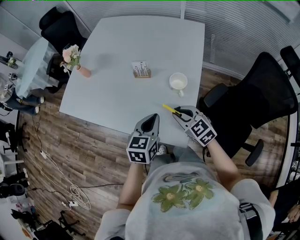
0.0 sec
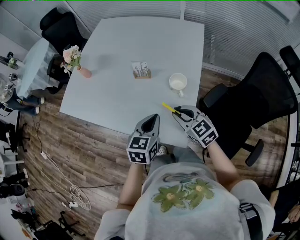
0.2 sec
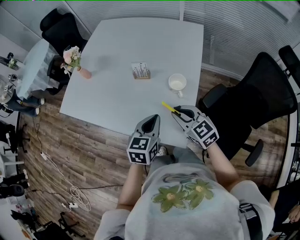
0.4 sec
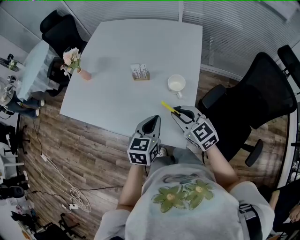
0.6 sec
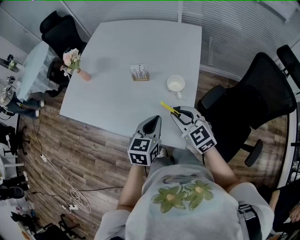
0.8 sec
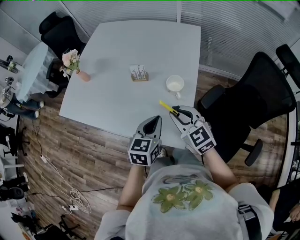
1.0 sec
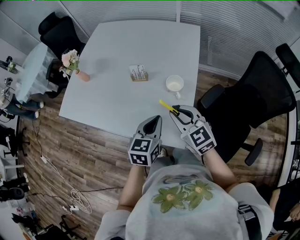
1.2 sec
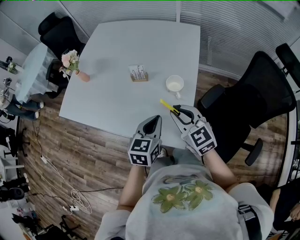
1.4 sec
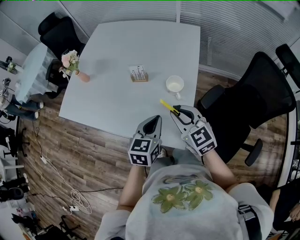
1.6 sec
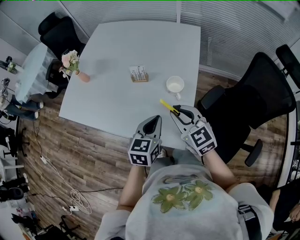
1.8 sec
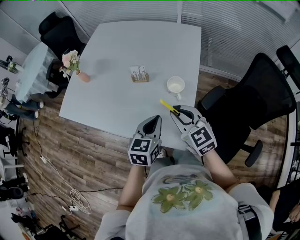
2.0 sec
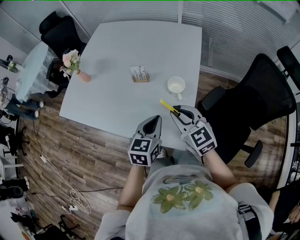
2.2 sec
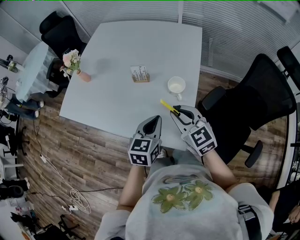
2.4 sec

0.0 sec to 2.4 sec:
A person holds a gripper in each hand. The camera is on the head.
0.0 sec to 1.2 sec: The right gripper moves upward, approximately 10 cm.
1.2 sec to 2.4 sec: Both grippers stay about where they are.

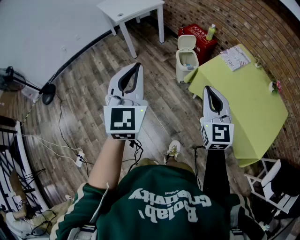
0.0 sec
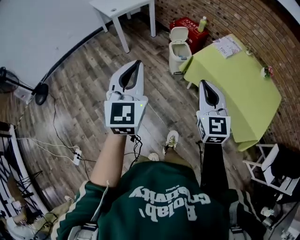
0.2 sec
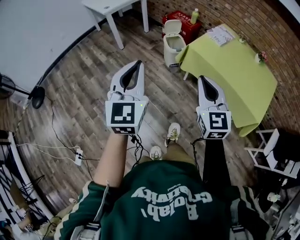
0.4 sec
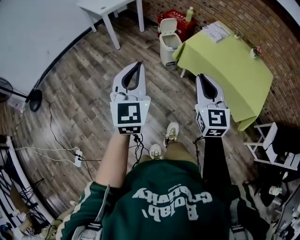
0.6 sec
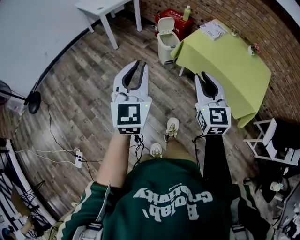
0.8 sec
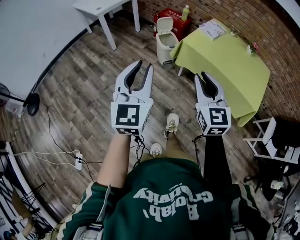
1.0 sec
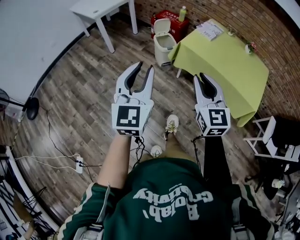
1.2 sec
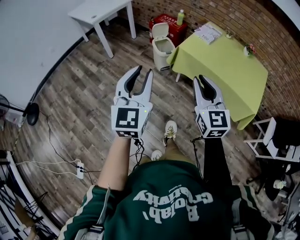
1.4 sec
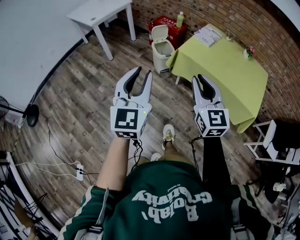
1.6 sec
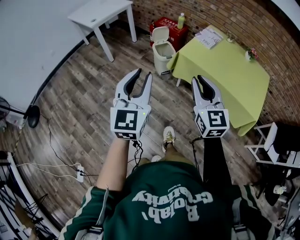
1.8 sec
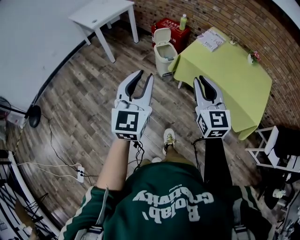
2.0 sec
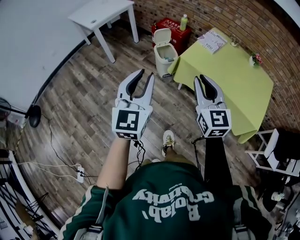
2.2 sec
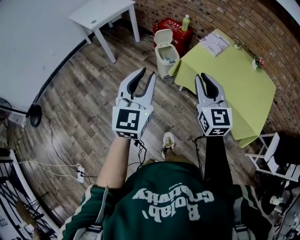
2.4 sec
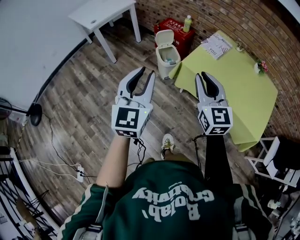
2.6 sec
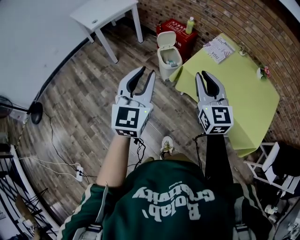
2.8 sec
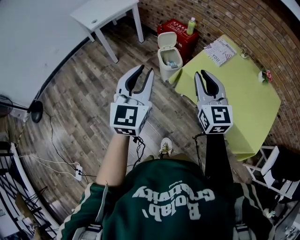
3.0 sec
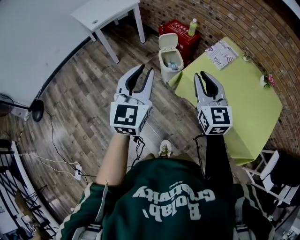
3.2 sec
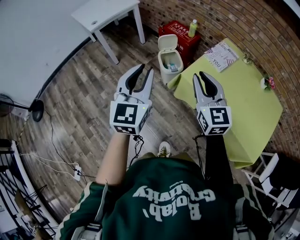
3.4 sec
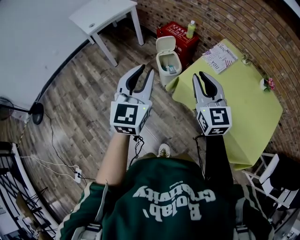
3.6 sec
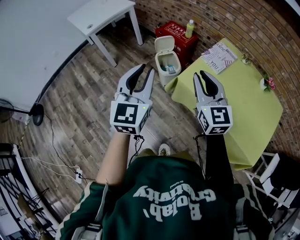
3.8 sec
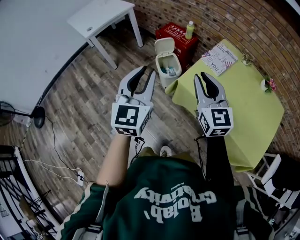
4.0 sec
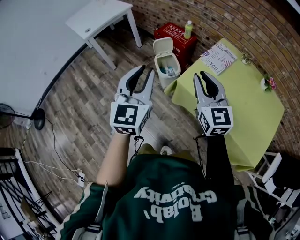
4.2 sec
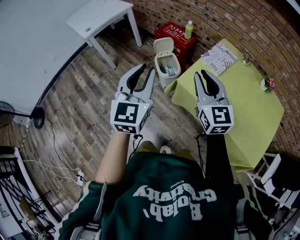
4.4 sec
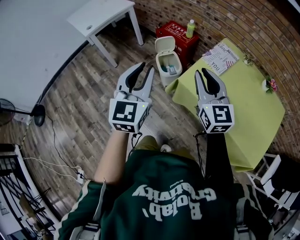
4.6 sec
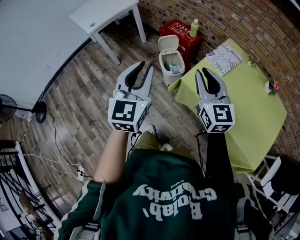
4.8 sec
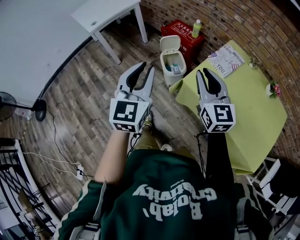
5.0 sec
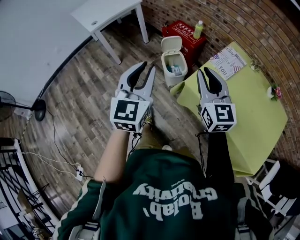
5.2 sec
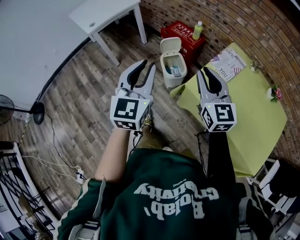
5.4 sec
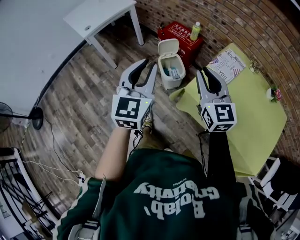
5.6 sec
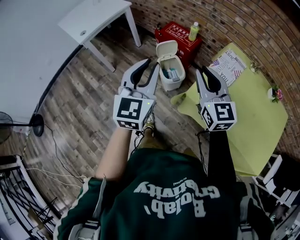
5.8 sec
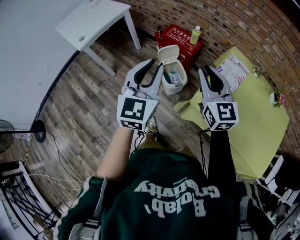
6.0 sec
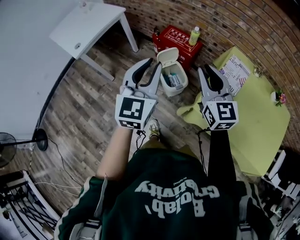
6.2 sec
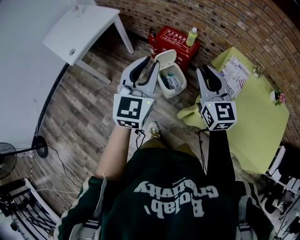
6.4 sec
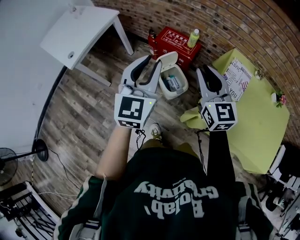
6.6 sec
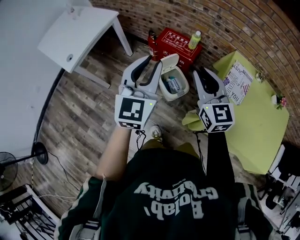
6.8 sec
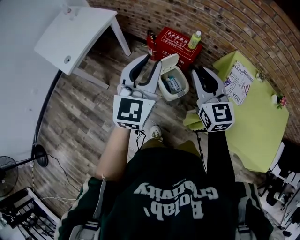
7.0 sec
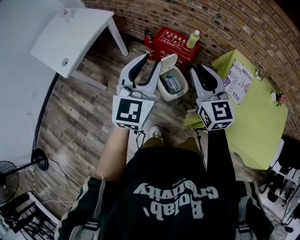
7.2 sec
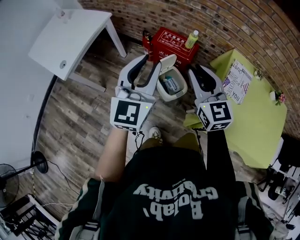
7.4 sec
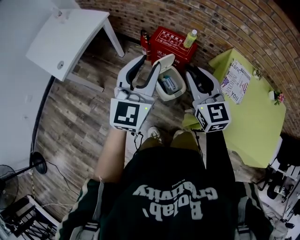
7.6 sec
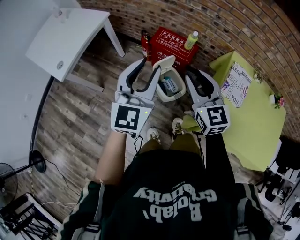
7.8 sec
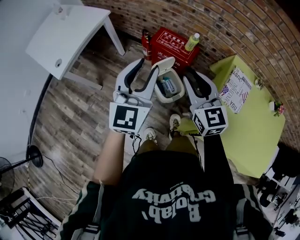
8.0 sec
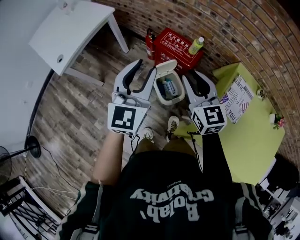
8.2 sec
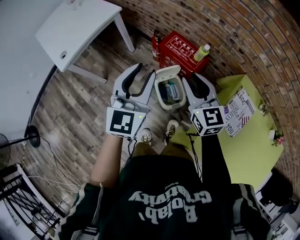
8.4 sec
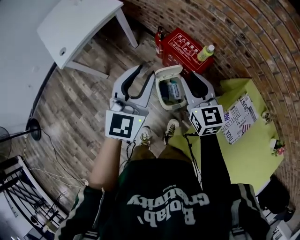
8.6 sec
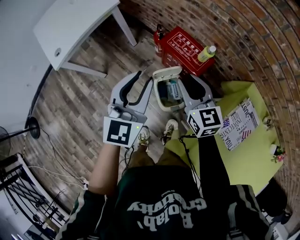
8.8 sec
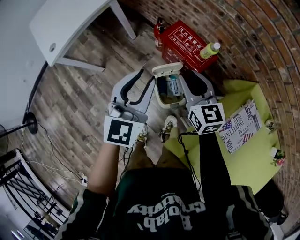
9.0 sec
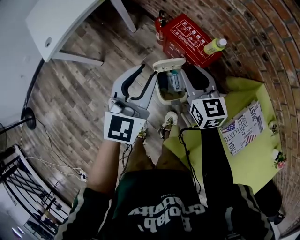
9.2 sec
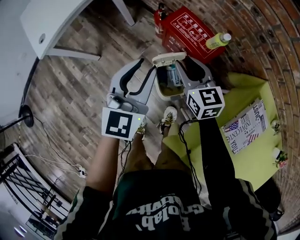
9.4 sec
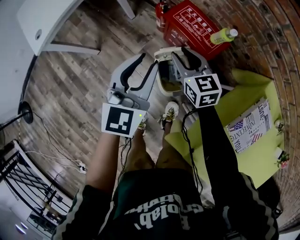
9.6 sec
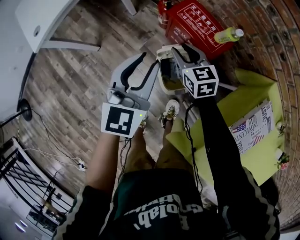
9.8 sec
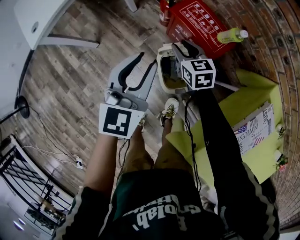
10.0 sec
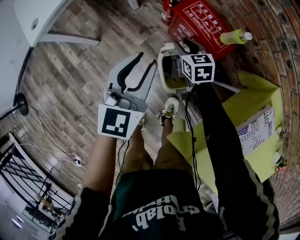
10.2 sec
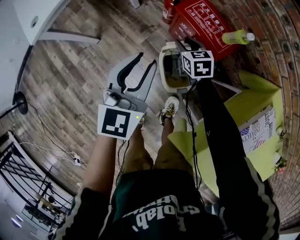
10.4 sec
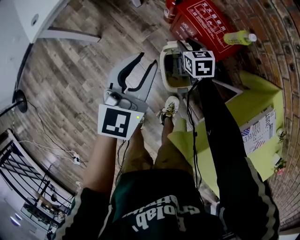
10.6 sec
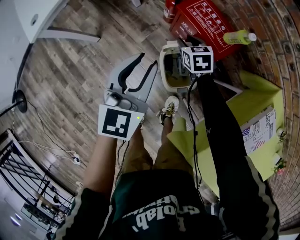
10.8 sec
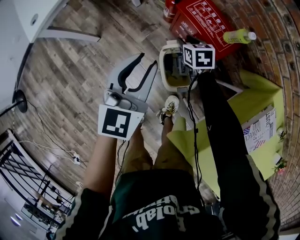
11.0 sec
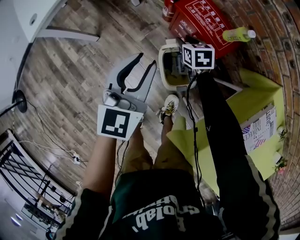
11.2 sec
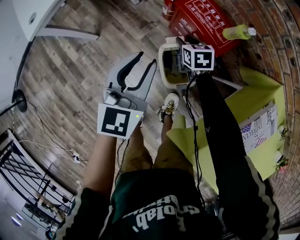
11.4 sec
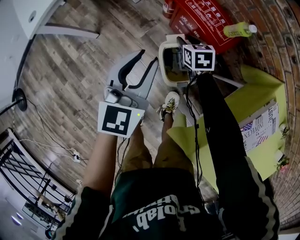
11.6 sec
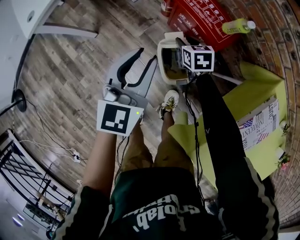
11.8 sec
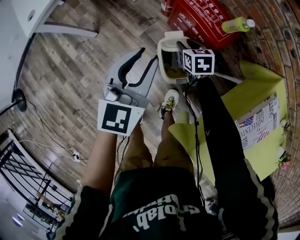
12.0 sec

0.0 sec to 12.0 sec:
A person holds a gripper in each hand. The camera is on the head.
0.0 sec to 1.6 sec: The grippers both shift backward by about 10 cm. The left gripper opens its fingers.
1.6 sec to 3.0 sec: The grippers both shift forward by roughly 25 cm.
3.0 sec to 4.4 sec: Both grippers move forward and to the right, roughly 10 cm.
4.4 sec to 6.0 sec: Both grippers travel together forward, approximately 20 cm.
6.0 sec to 7.6 sec: The two grippers go roughly 20 cm forward and to the left.
7.6 sec to 9.0 sec: The left gripper shifts approximately 20 cm downward, forward and to the right. The right gripper travels forward and downward by roughly 25 cm, and turns by some 20 degrees.
9.0 sec to 10.4 sec: The right gripper heads downward, covering approximately 25 cm, and turns by some 30 degrees, while the left gripper goes some 15 cm downward and to the left.
10.4 sec to 12.0 sec: The right gripper goes approximately 5 cm backward.

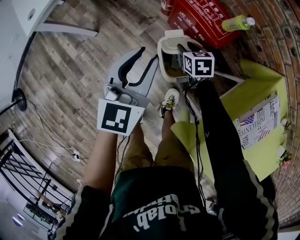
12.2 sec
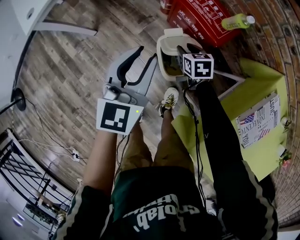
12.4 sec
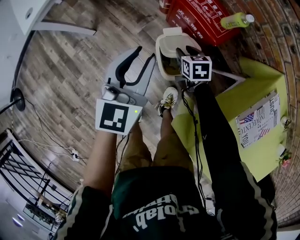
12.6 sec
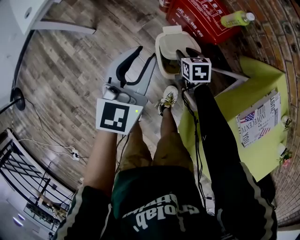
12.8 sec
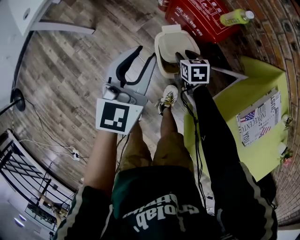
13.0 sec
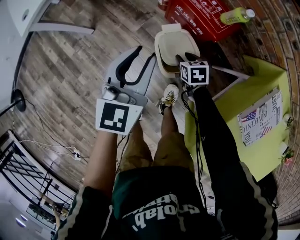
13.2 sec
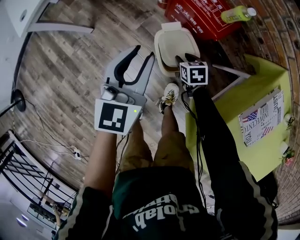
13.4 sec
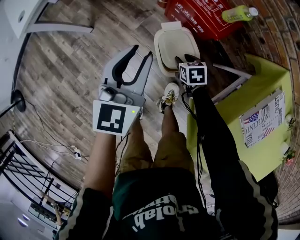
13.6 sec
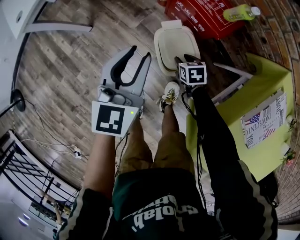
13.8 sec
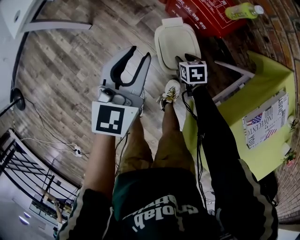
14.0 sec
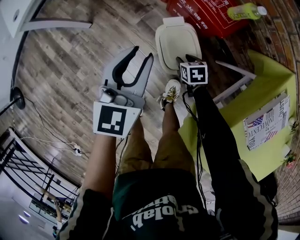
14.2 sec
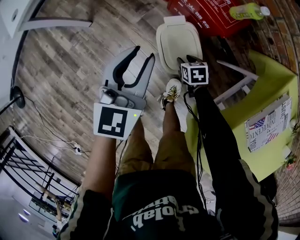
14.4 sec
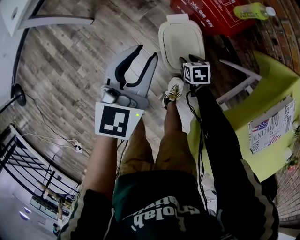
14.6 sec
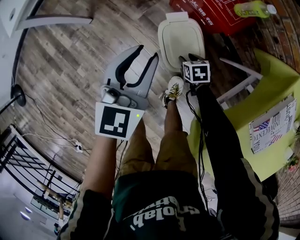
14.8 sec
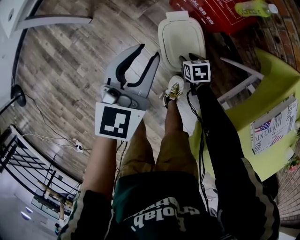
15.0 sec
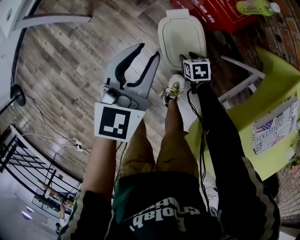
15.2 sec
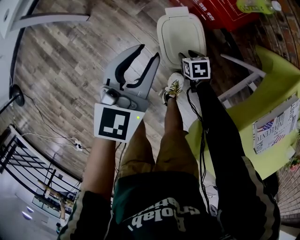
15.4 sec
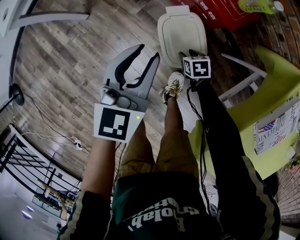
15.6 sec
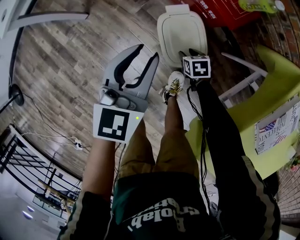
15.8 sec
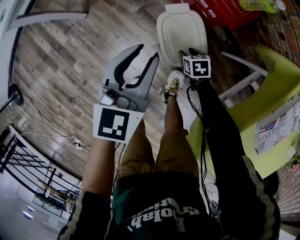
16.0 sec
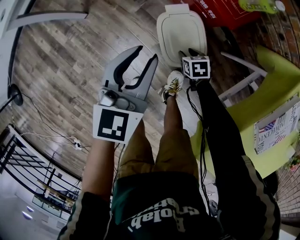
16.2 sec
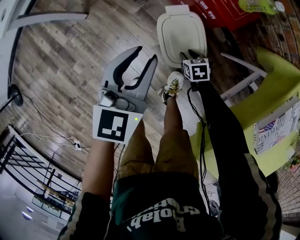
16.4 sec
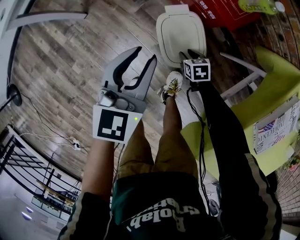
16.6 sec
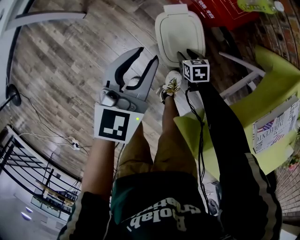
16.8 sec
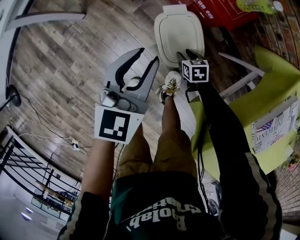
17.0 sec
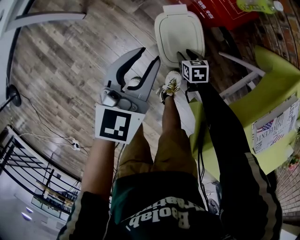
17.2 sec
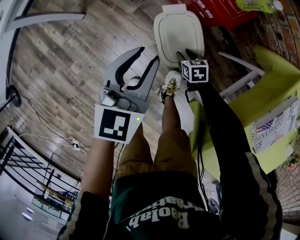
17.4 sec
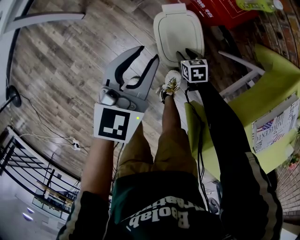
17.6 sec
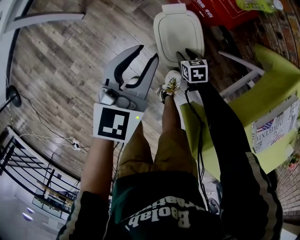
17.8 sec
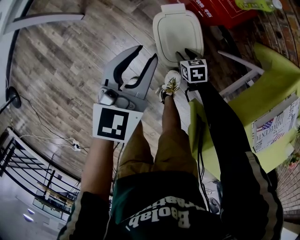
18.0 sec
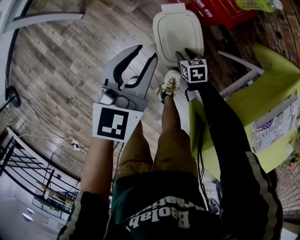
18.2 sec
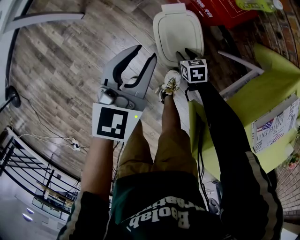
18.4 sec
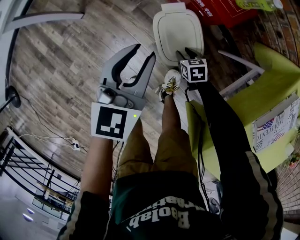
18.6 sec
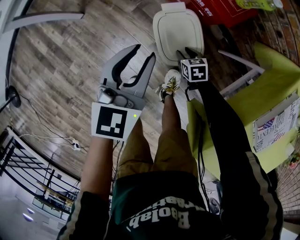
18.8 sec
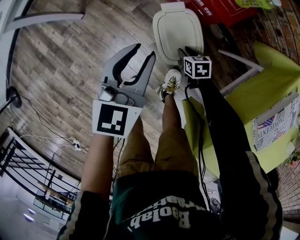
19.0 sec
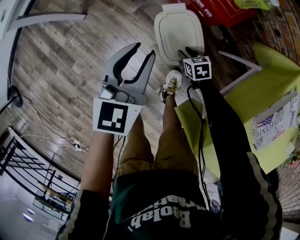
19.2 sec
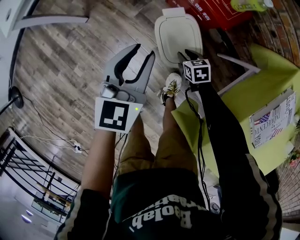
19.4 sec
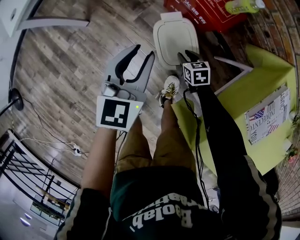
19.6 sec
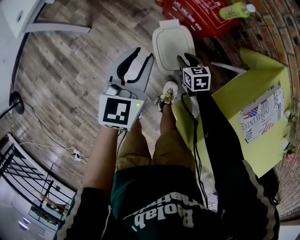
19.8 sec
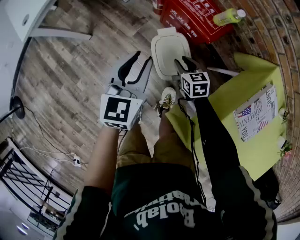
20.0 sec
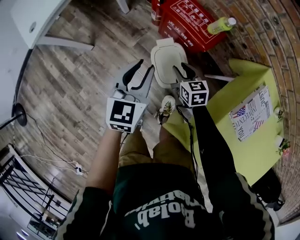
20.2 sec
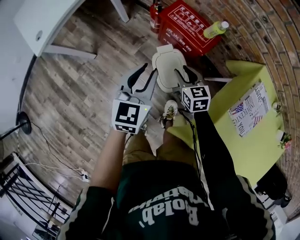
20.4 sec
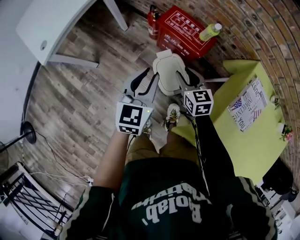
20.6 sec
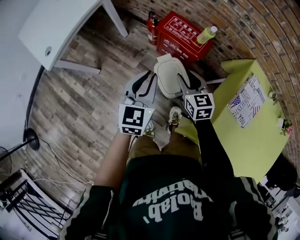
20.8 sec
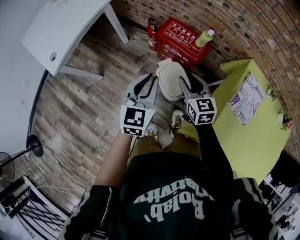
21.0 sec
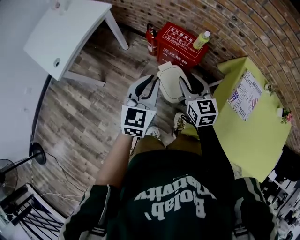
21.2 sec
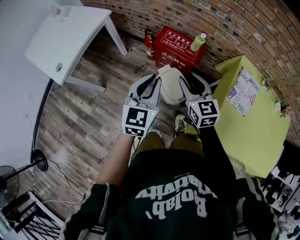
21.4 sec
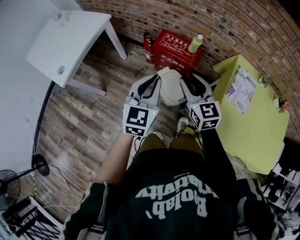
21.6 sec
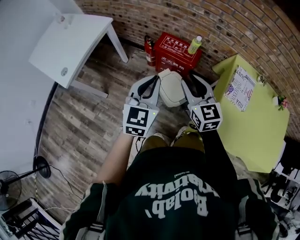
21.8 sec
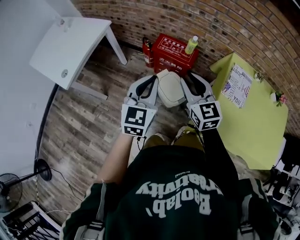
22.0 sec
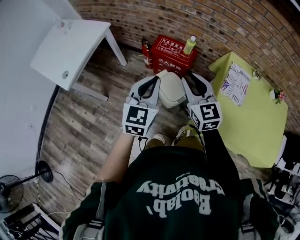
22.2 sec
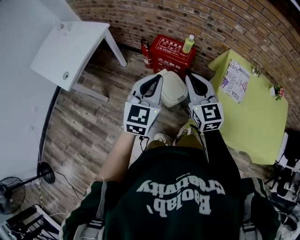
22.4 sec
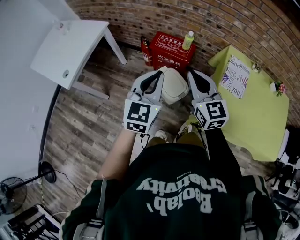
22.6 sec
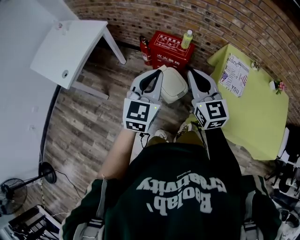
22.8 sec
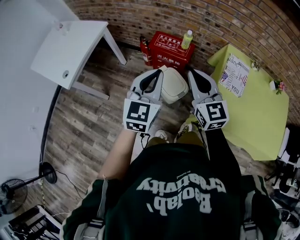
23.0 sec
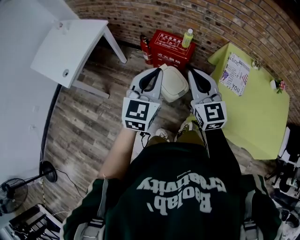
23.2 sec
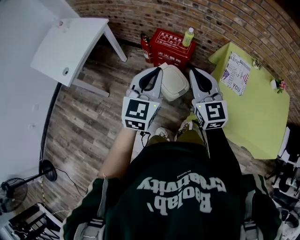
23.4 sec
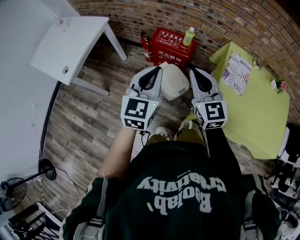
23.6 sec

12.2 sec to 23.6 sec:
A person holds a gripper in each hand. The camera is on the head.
12.2 sec to 13.6 sec: The right gripper shifts about 10 cm backward and downward.
13.6 sec to 15.0 sec: Both grippers travel together downward, some 5 cm.
15.0 sec to 19.4 sec: The grippers make only small movements.
19.4 sec to 20.8 sec: The right gripper moves upward, roughly 35 cm, and swivels about 40 degrees; the left gripper goes roughly 15 cm upward.
20.8 sec to 22.2 sec: Both grippers move upward and backward, roughly 20 cm. The right gripper swivels roughly 20 degrees.
22.2 sec to 23.6 sec: The right gripper closes its fingers.
